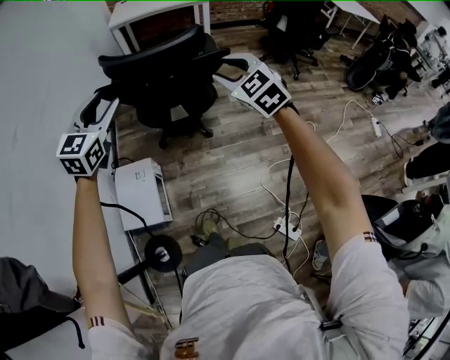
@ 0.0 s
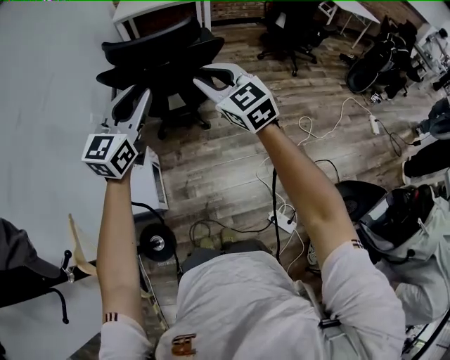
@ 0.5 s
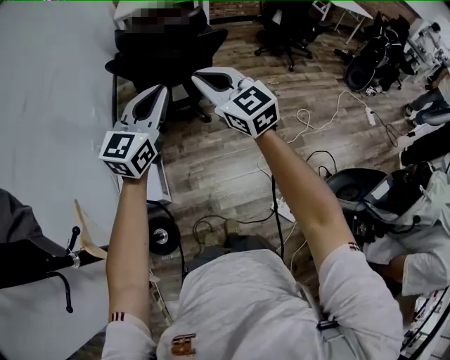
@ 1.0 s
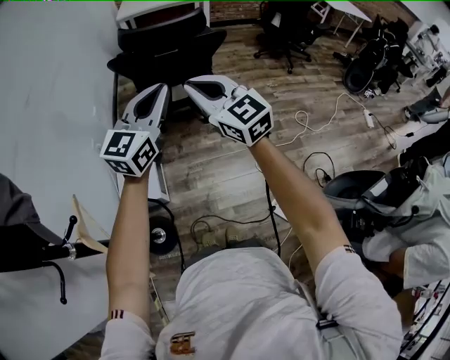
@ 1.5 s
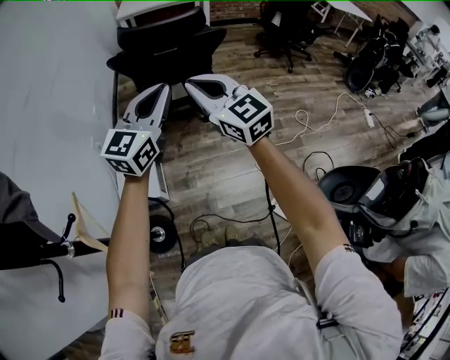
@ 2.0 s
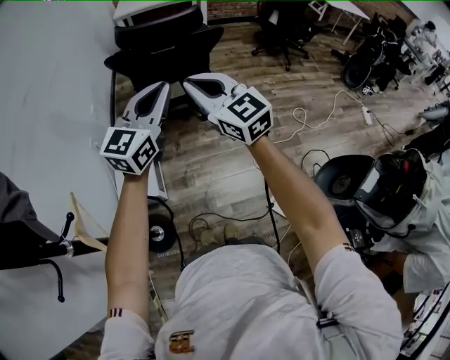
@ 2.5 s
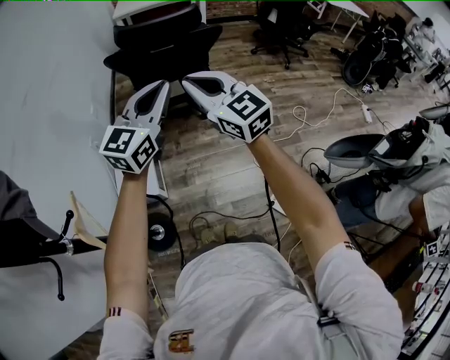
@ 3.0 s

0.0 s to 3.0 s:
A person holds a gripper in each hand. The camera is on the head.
0.0 to 1.5 s: The left gripper is displaced backward and to the right by about 25 cm, rotates roughly 20 degrees, and closes its fingers; the right gripper heads backward and to the left, covering about 25 cm, swivels about 30 degrees, and closes up.
1.5 to 3.0 s: The grippers stay close to where they were, moving slightly.
